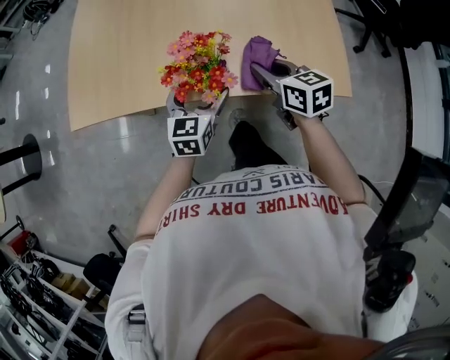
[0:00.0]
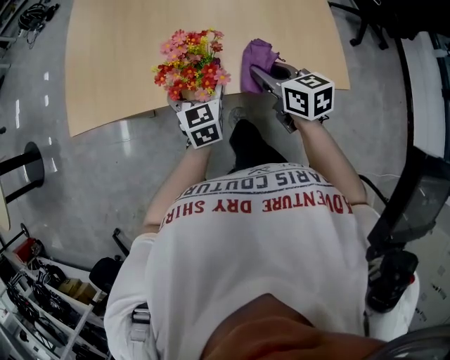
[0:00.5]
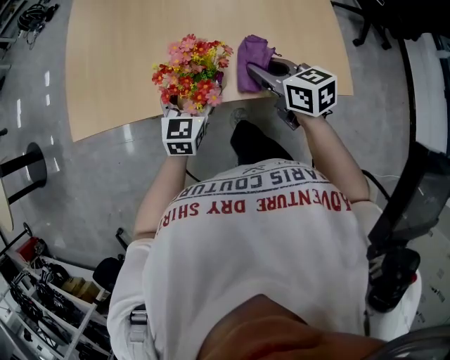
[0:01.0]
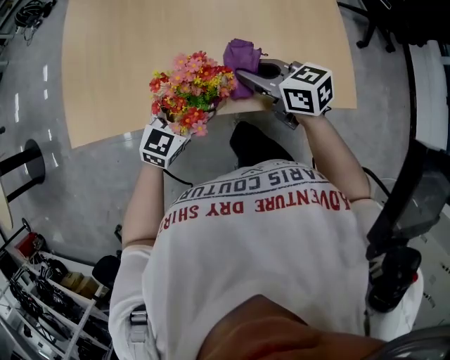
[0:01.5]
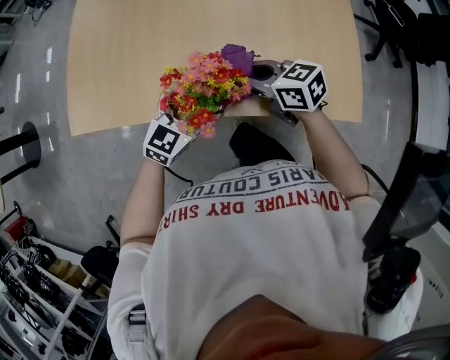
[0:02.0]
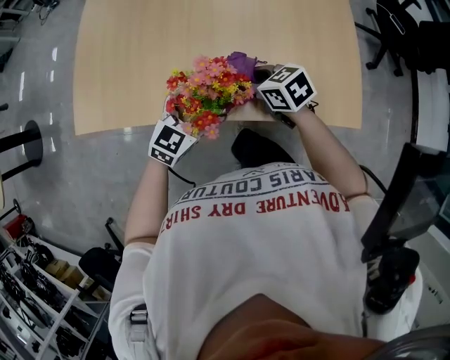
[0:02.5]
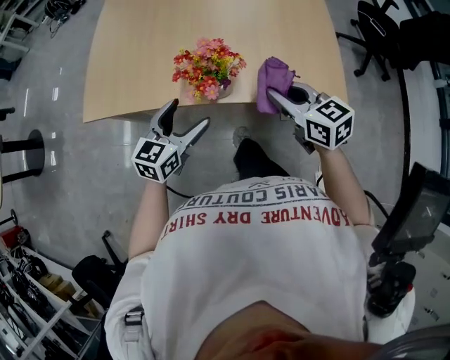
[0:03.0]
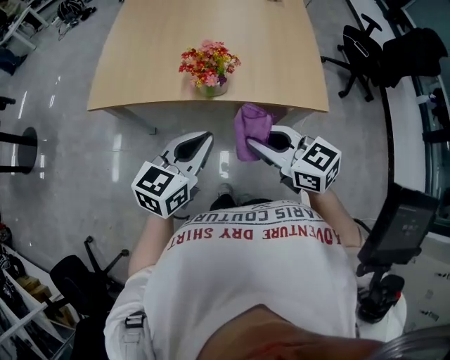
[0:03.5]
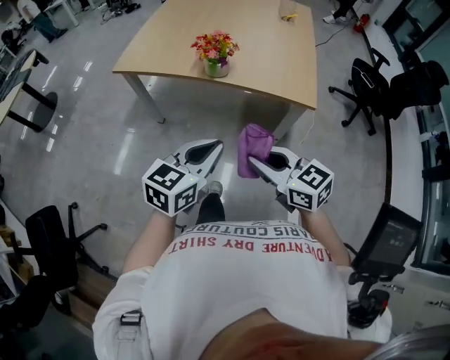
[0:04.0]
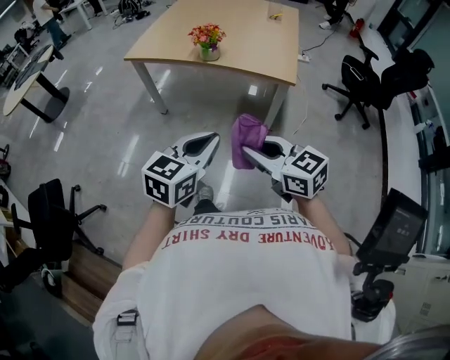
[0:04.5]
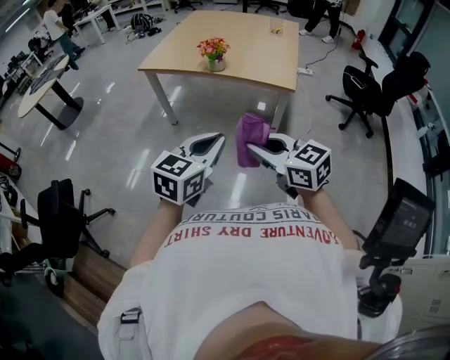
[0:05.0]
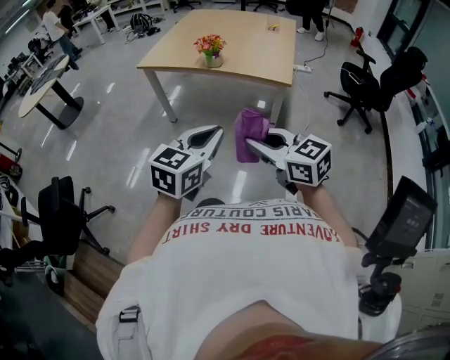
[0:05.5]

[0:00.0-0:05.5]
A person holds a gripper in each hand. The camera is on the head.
0:00.0 to 0:02.0: The right gripper travels to the left and forward by roughly 10 cm, and rotates approximately 30 degrees. The left gripper swivels roughly 30 degrees.
0:02.0 to 0:03.5: Both grippers travel together backward and upward, approximately 35 cm. The left gripper rotates roughly 20 degrees, and closes up.
0:03.5 to 0:05.5: The two grippers travel together, backward, some 50 cm.

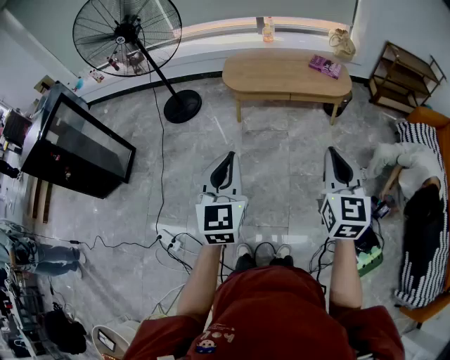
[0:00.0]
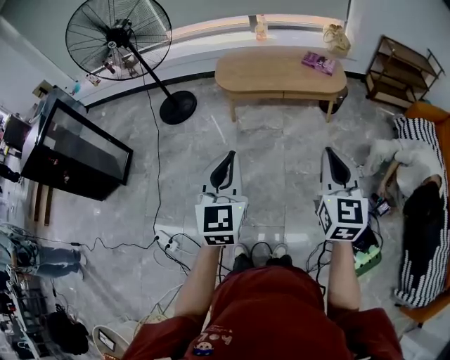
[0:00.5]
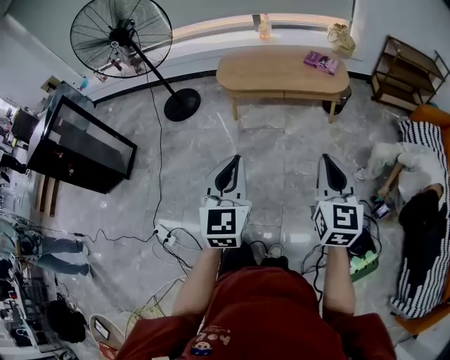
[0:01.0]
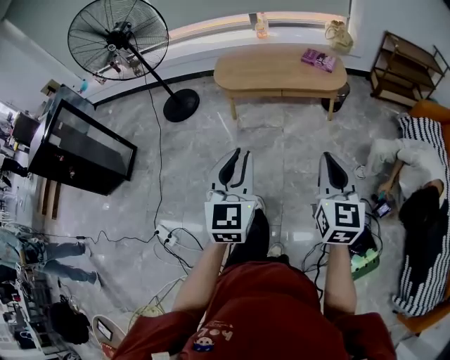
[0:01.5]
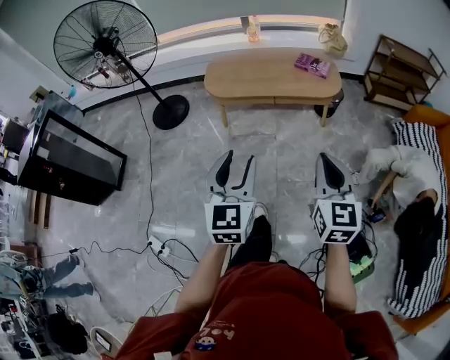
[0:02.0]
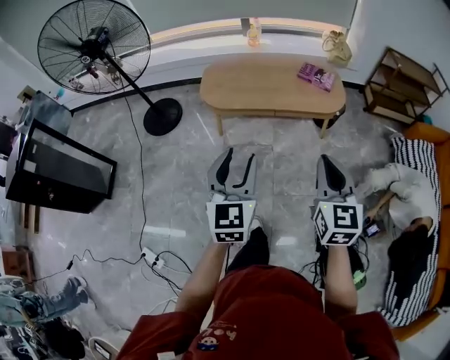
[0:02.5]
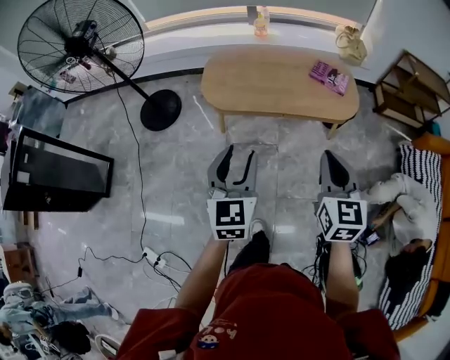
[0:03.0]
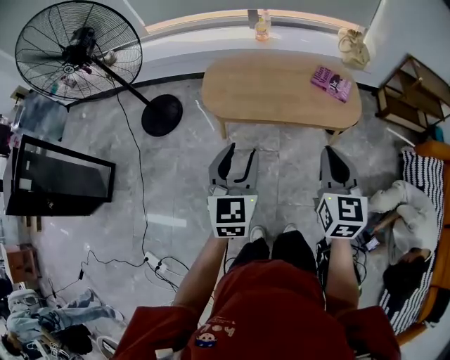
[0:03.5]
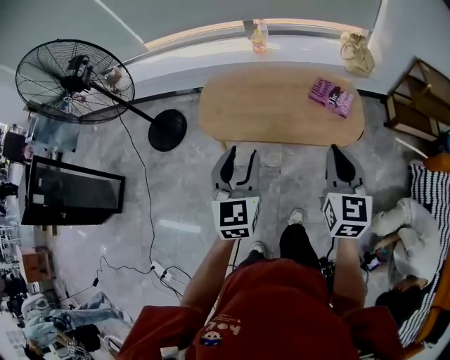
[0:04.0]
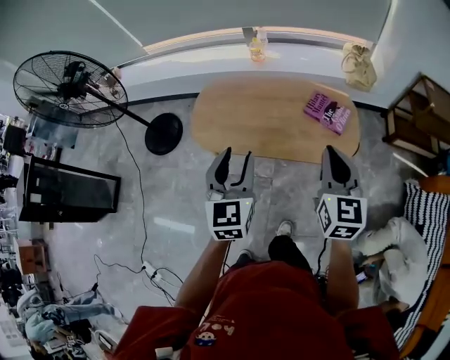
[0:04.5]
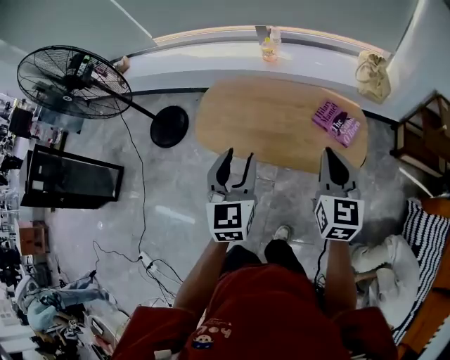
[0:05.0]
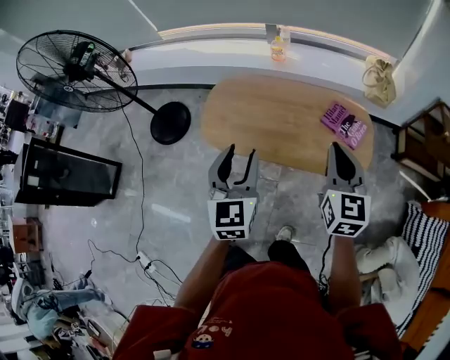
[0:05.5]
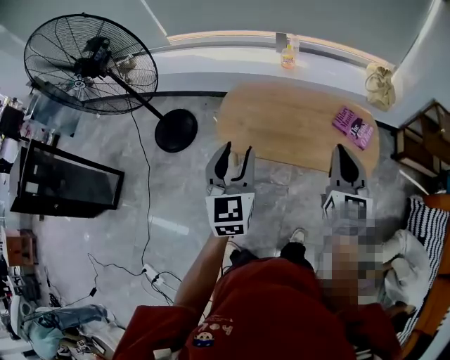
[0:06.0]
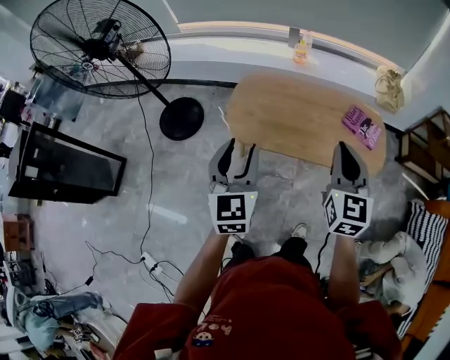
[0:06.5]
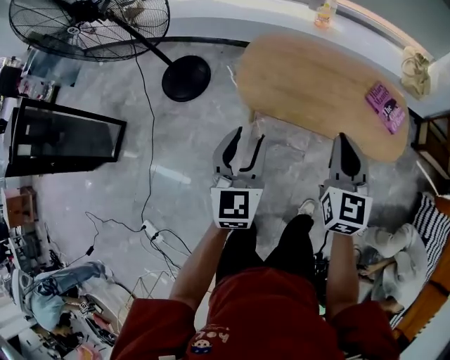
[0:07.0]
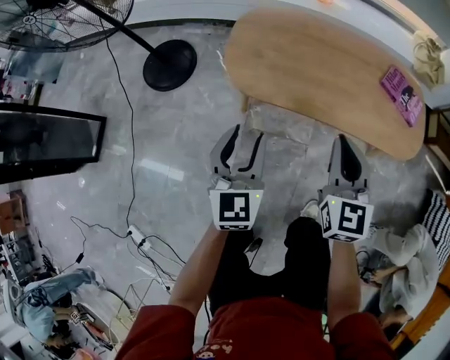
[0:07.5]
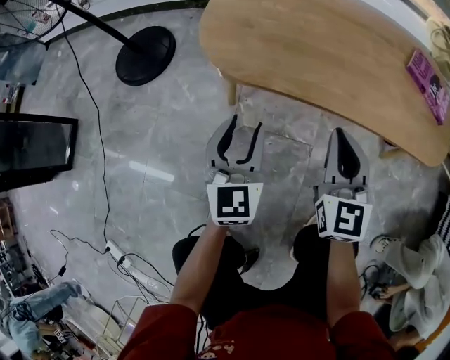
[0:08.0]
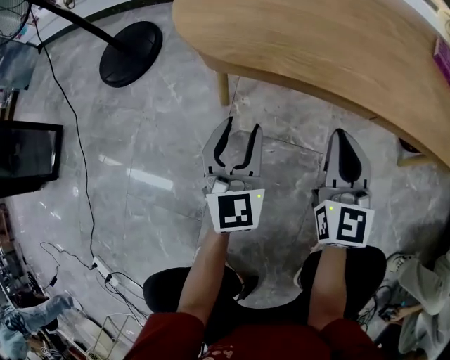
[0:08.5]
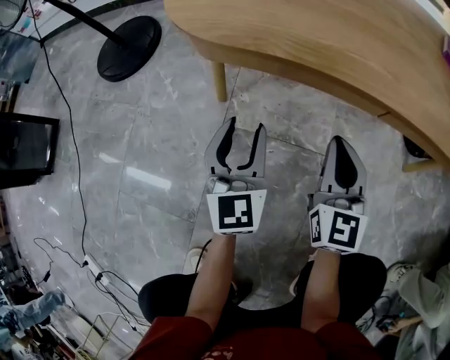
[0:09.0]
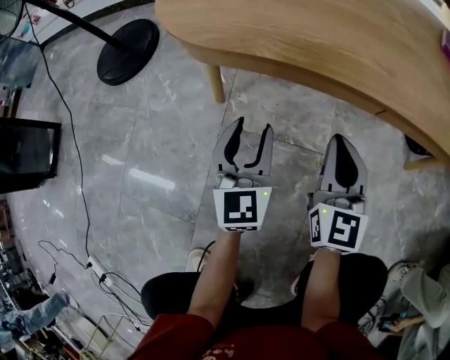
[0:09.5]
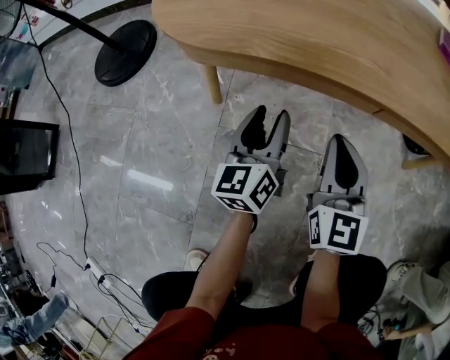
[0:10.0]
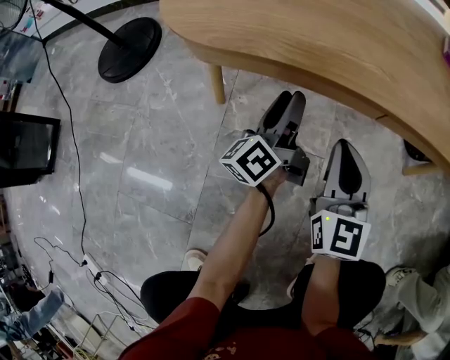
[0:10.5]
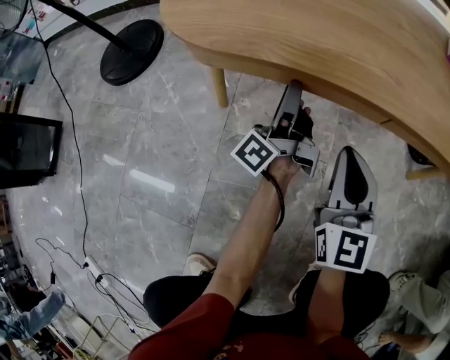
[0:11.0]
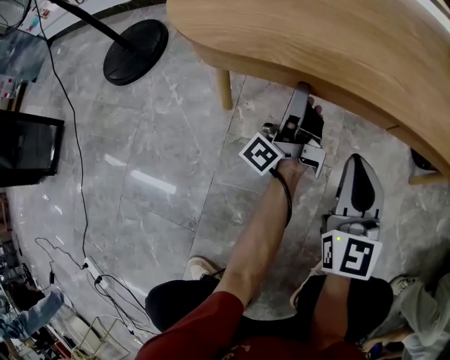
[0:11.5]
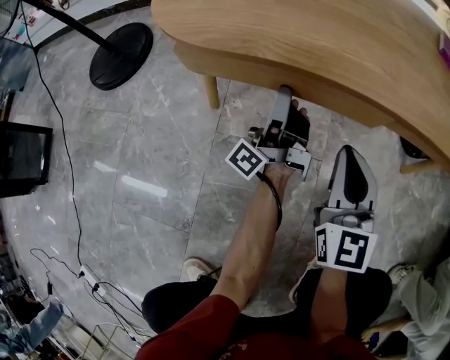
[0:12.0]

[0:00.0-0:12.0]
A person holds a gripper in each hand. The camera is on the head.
0:00.0 to 0:02.0: The grippers both shift to the right and forward by approximately 15 cm. The left gripper opens up.
0:02.0 to 0:04.0: Both grippers are carried forward, roughly 50 cm.
0:04.0 to 0:06.0: The grippers both shift to the left and forward by roughly 15 cm.
0:06.0 to 0:08.0: The grippers both shift downward by about 50 cm.
0:08.0 to 0:10.0: Both grippers travel together downward, approximately 20 cm. The left gripper turns by about 30 degrees.
0:10.0 to 0:12.0: The left gripper is displaced forward by some 5 cm, and twists roughly 60 degrees counterclockwise, seen from behind.

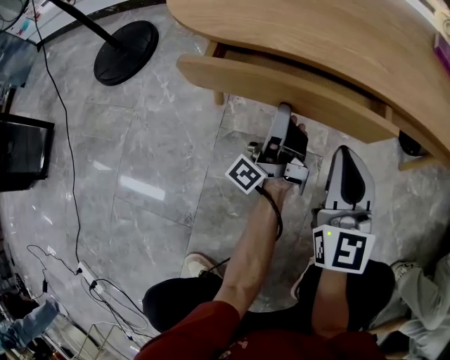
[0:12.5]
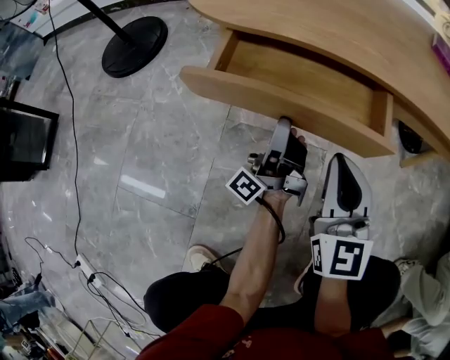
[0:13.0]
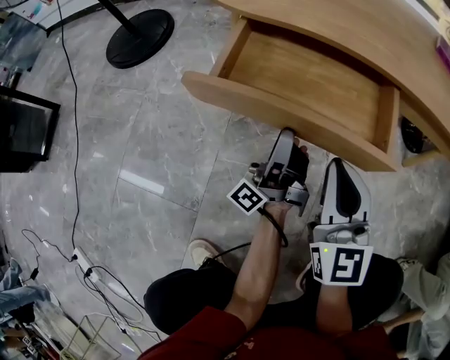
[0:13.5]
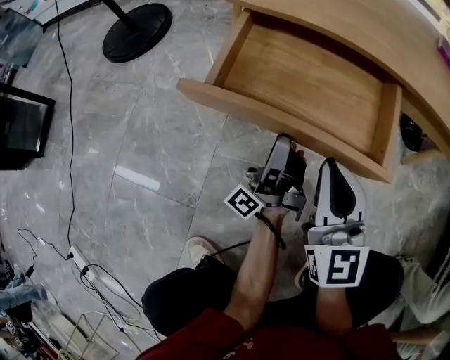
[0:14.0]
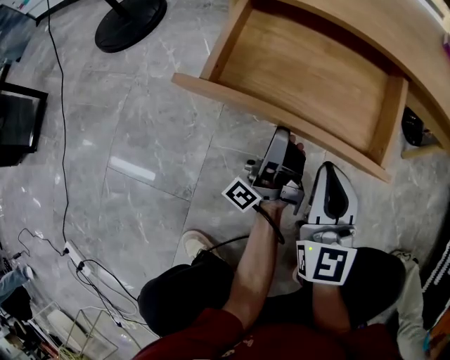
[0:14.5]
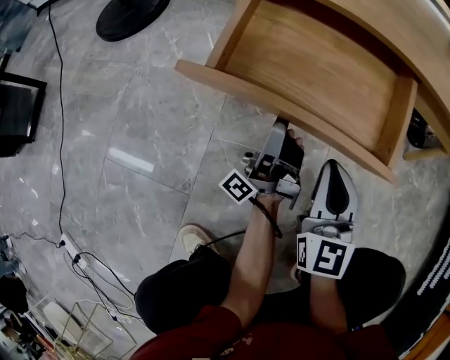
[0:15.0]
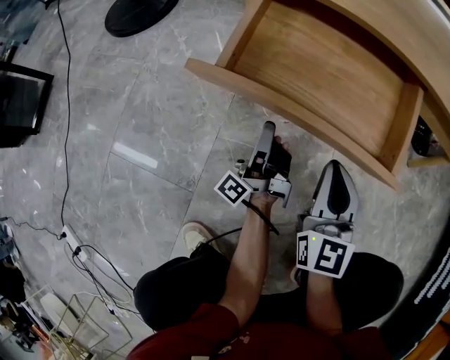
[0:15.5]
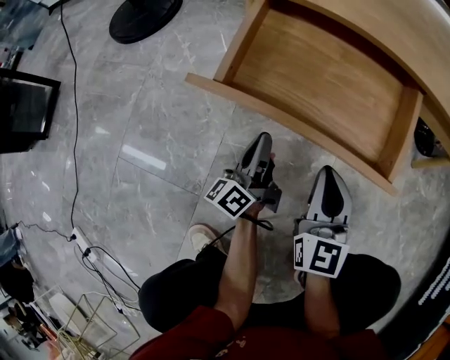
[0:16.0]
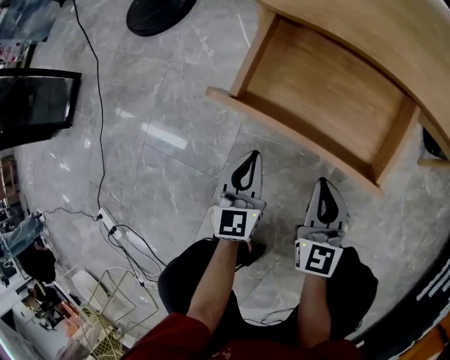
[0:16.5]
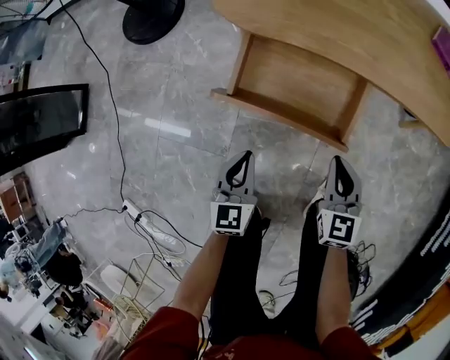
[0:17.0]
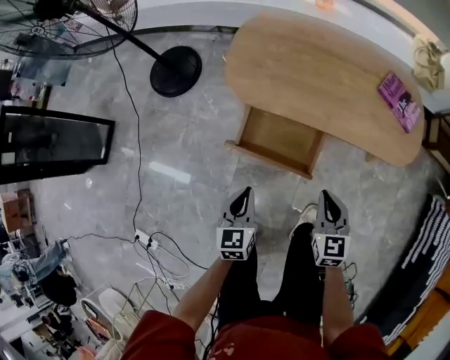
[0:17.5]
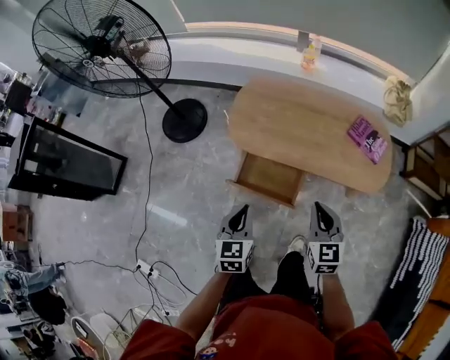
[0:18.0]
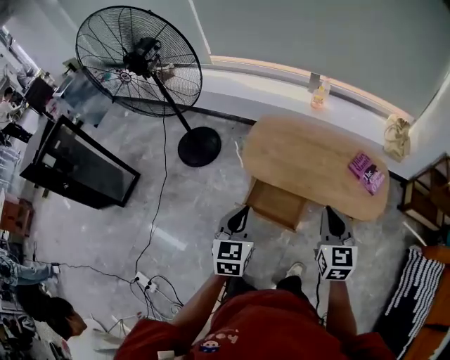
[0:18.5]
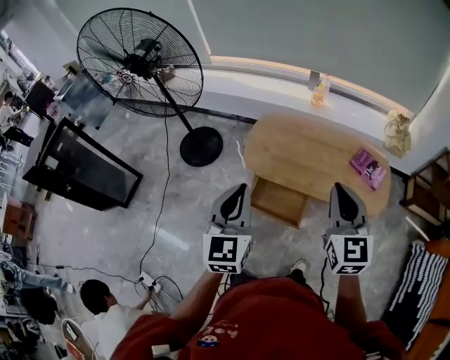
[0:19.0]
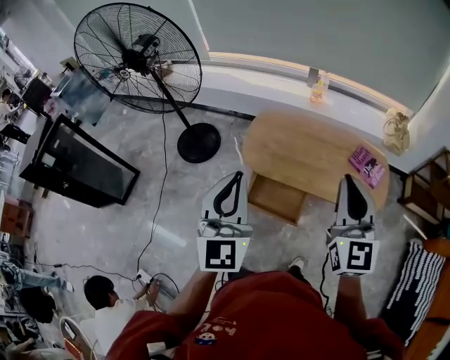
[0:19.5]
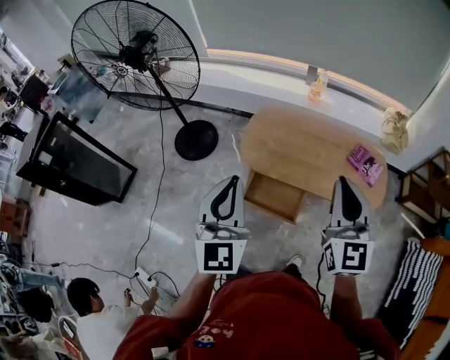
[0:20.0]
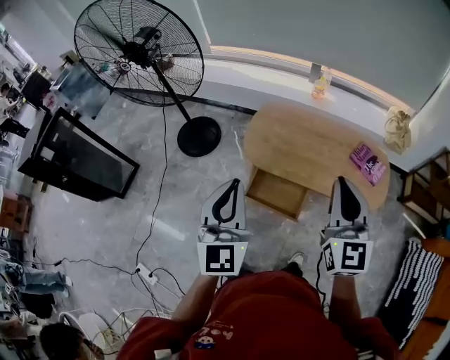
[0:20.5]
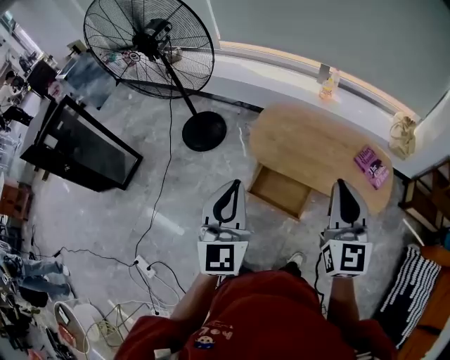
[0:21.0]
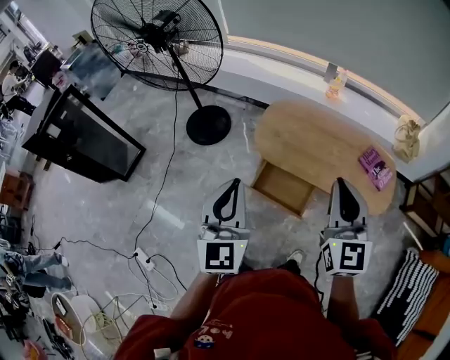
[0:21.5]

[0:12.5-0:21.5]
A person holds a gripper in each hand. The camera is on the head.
0:12.5 to 0:14.5: The right gripper shifts about 10 cm backward and to the left; the left gripper moves backward, approximately 10 cm.
0:14.5 to 0:17.0: The right gripper heads upward and to the right, covering about 10 cm, and swivels some 20 degrees, while the left gripper travels upward, backward and to the left by roughly 20 cm, tilts its fingers roughly 60 degrees downward, and closes.
0:17.0 to 0:19.5: Both grippers travel together upward, roughly 70 cm. The left gripper tilts its fingers some 40 degrees upward; the right gripper tilts its fingers approximately 30 degrees upward.
0:19.5 to 0:21.5: The right gripper heads to the left, covering approximately 5 cm. The left gripper heads downward, covering about 5 cm.
